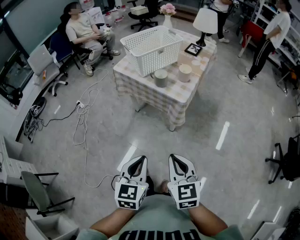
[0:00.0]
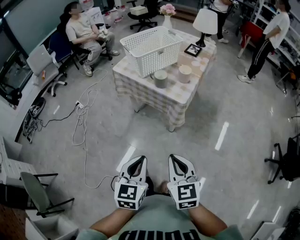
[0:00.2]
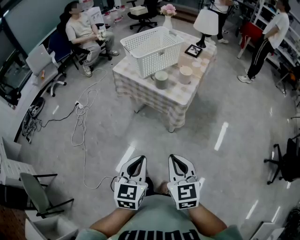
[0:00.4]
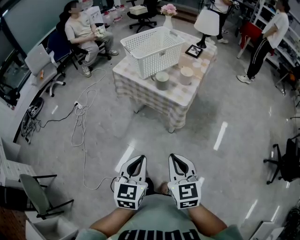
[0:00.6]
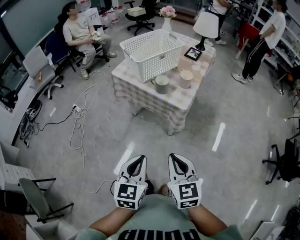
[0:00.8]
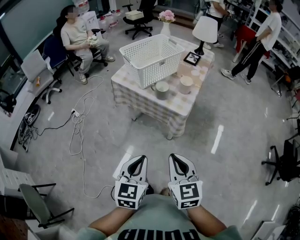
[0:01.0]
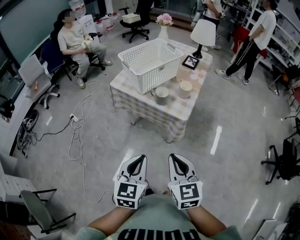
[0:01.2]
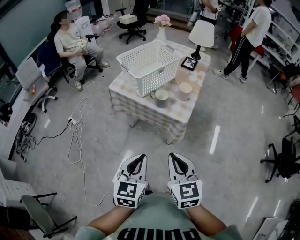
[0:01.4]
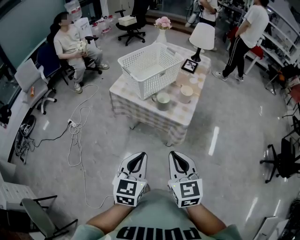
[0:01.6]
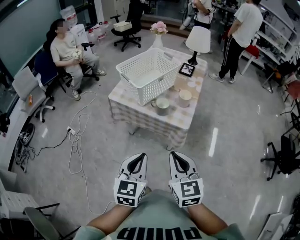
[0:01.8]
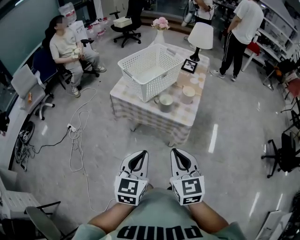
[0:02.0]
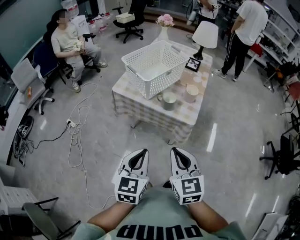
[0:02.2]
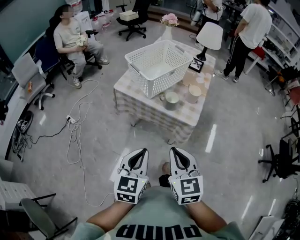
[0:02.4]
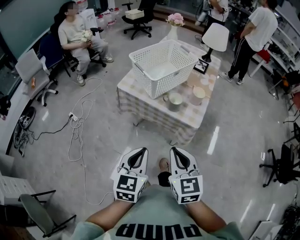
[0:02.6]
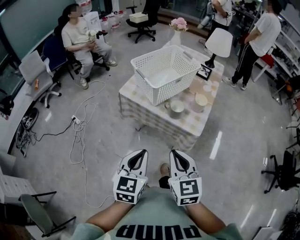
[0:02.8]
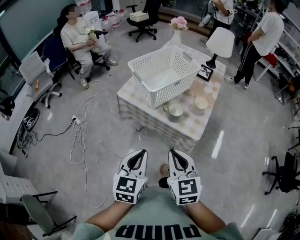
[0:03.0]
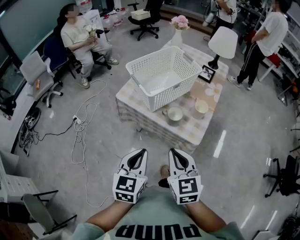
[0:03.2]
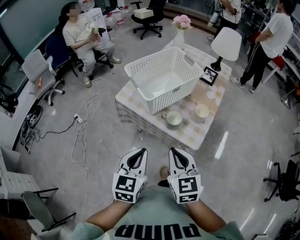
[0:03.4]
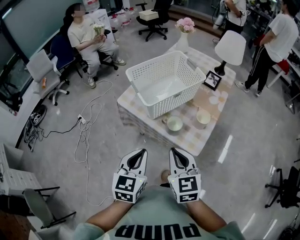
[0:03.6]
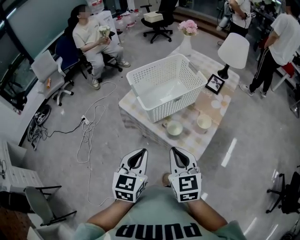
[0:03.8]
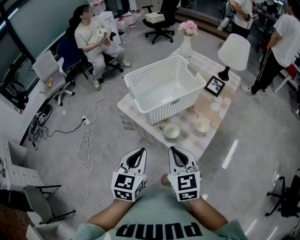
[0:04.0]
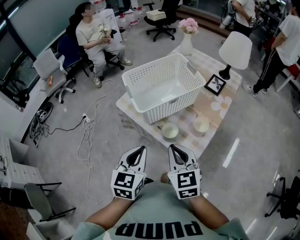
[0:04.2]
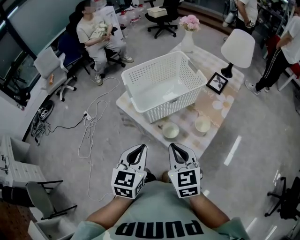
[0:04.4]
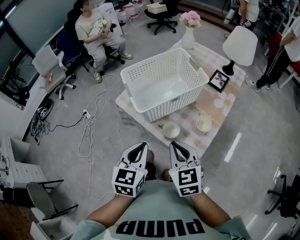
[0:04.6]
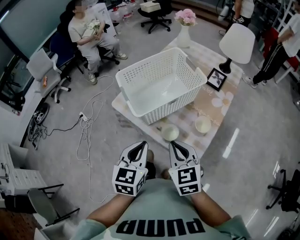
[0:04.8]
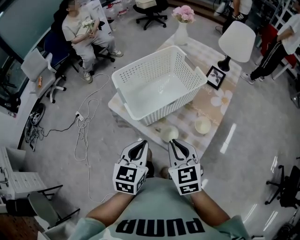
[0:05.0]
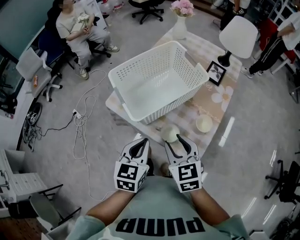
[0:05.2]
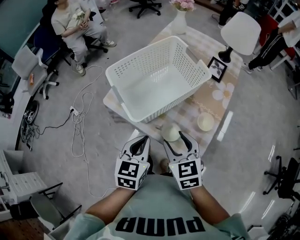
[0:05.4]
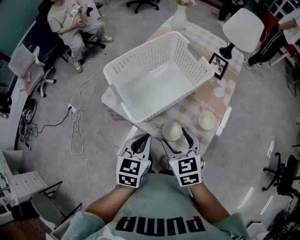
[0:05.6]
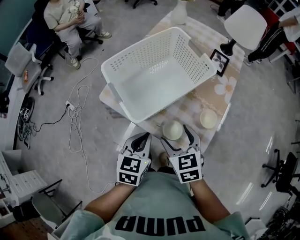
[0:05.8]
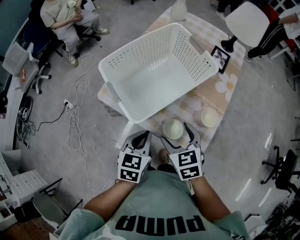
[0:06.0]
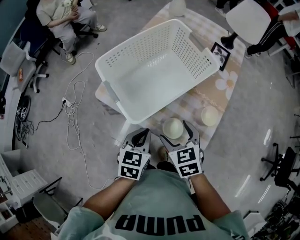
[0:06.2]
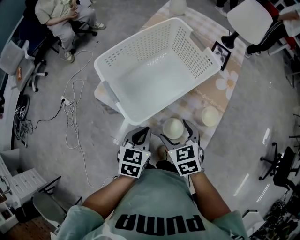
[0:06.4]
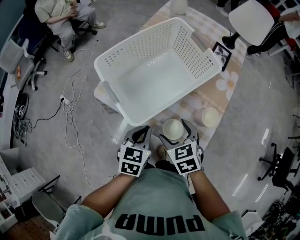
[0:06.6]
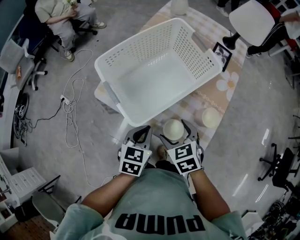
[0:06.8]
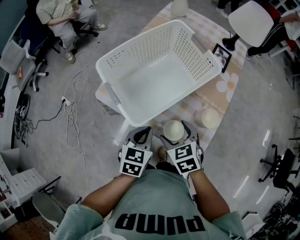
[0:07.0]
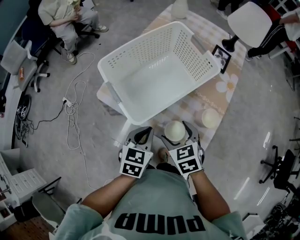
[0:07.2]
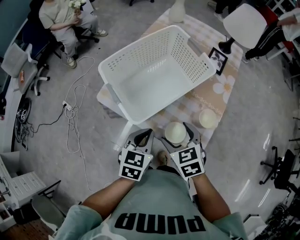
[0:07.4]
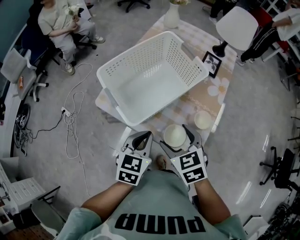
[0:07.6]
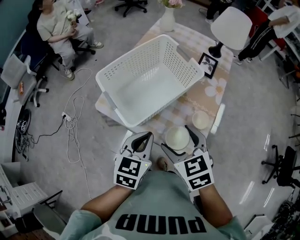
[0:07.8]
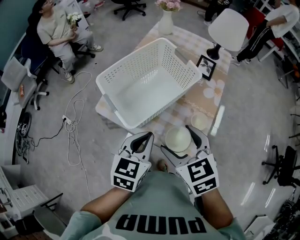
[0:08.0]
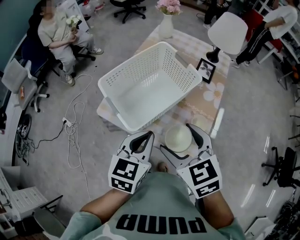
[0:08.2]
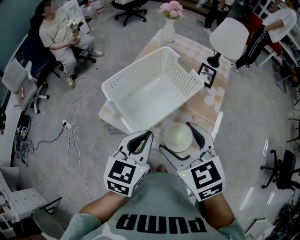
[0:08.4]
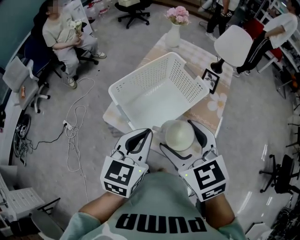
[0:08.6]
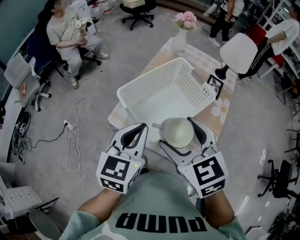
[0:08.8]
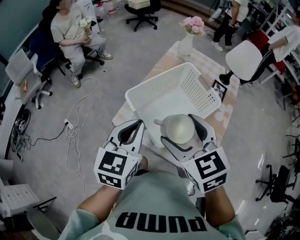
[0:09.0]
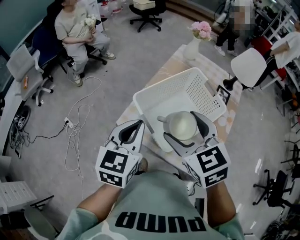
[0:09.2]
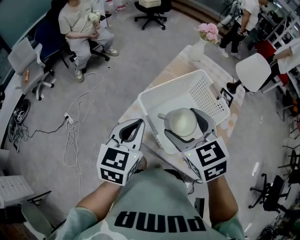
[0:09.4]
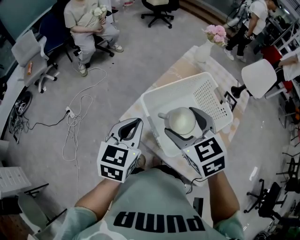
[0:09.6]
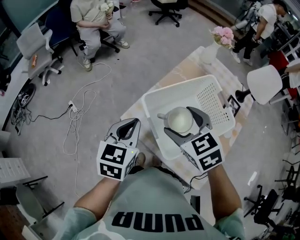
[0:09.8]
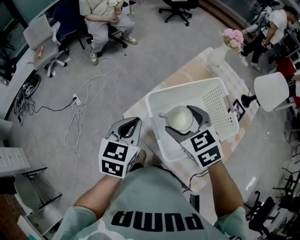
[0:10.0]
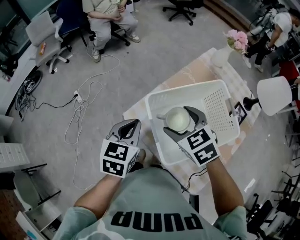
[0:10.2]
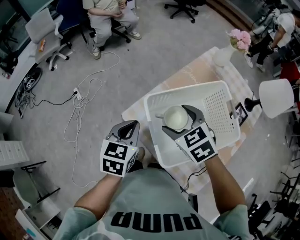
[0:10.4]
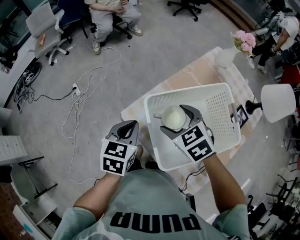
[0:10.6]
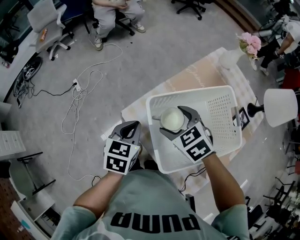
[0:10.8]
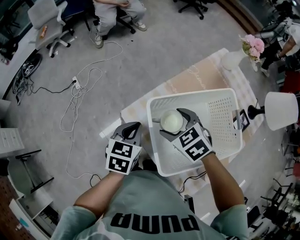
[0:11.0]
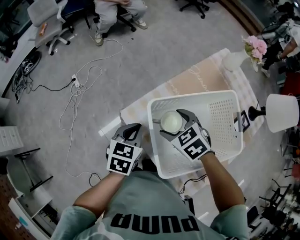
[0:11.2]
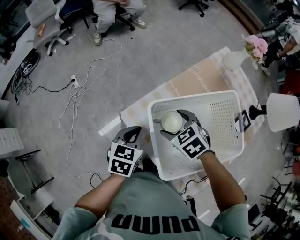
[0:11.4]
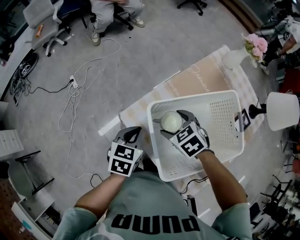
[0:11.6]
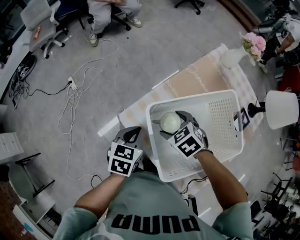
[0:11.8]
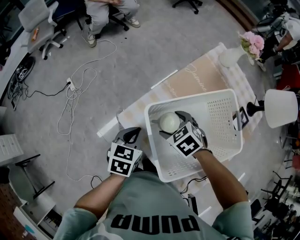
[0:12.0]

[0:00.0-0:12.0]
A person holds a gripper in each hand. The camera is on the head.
0:00.0 to 0:01.6: Both grippers move forward and to the left, approximately 15 cm.
0:01.6 to 0:03.0: The grippers both shift forward by some 10 cm.
0:03.0 to 0:04.4: Both grippers travel together forward and to the right, roughly 15 cm.
0:04.4 to 0:06.0: Both grippers move downward and forward, approximately 15 cm. The right gripper swivels approximately 20 degrees, and opens.
0:06.0 to 0:07.6: The grippers make only small movements.
0:07.6 to 0:09.0: The grippers both shift upward, to the left and forward by approximately 20 cm.
0:09.0 to 0:10.4: The right gripper shifts some 20 cm forward and downward, and swivels approximately 30 degrees. Meanwhile the left gripper moves downward, forward and to the left, approximately 15 cm, and rotates approximately 20 degrees.
0:10.4 to 0:12.0: The two grippers go approximately 10 cm downward.

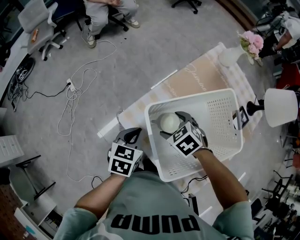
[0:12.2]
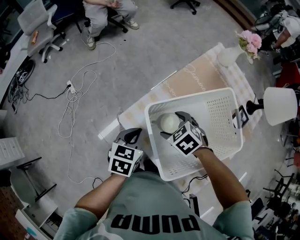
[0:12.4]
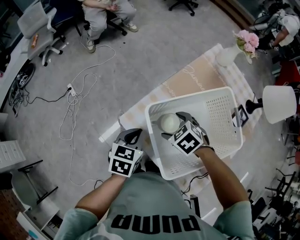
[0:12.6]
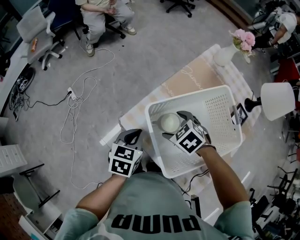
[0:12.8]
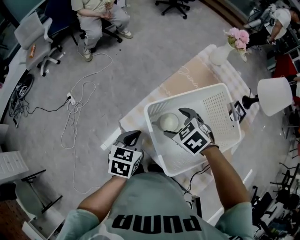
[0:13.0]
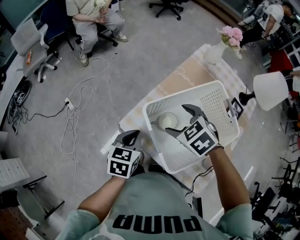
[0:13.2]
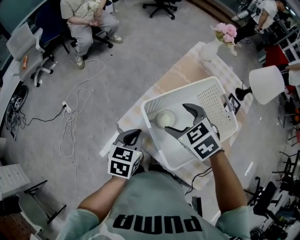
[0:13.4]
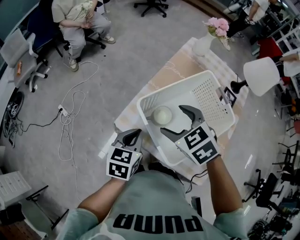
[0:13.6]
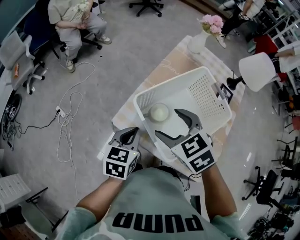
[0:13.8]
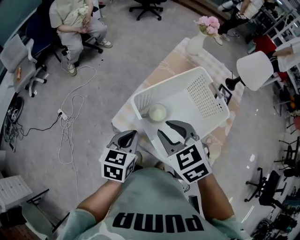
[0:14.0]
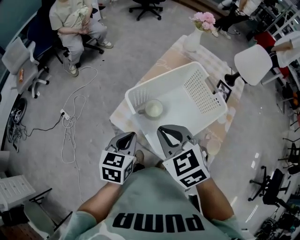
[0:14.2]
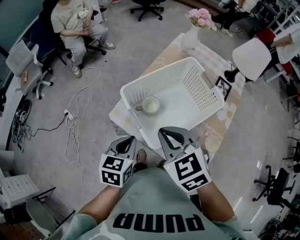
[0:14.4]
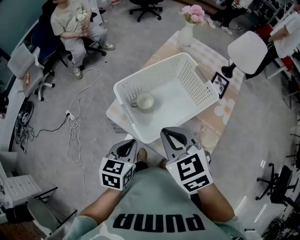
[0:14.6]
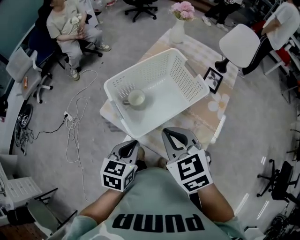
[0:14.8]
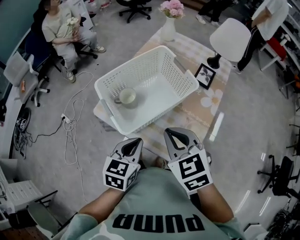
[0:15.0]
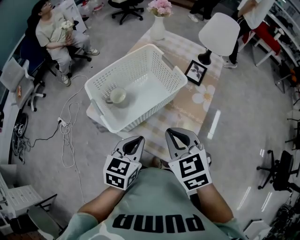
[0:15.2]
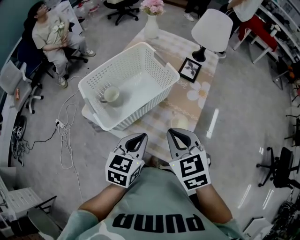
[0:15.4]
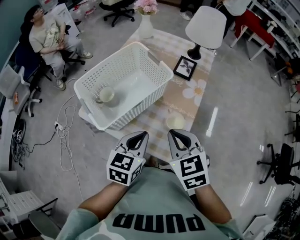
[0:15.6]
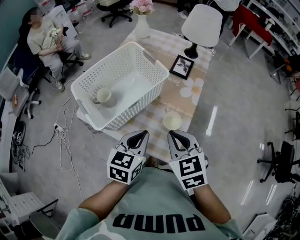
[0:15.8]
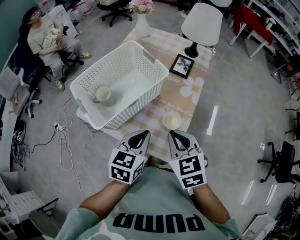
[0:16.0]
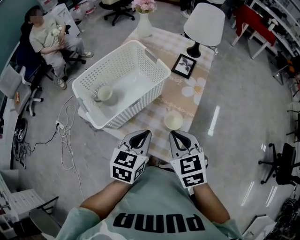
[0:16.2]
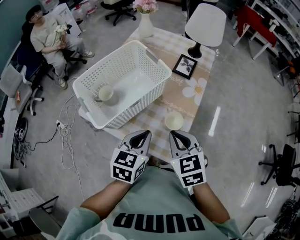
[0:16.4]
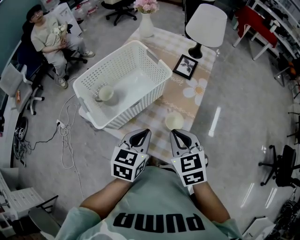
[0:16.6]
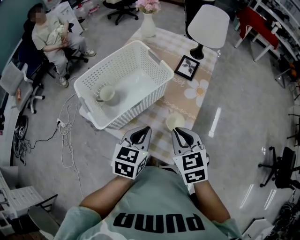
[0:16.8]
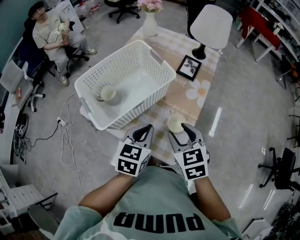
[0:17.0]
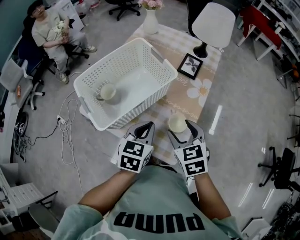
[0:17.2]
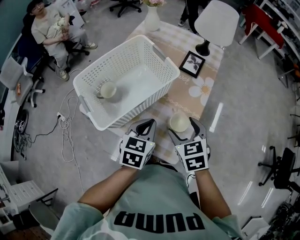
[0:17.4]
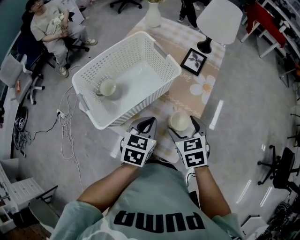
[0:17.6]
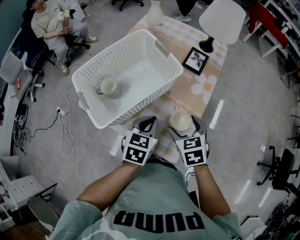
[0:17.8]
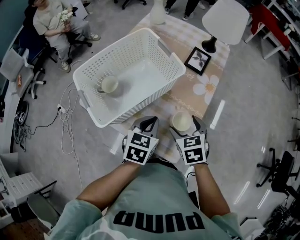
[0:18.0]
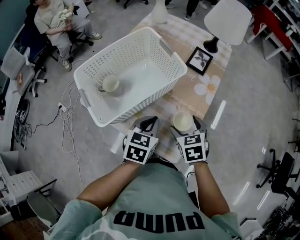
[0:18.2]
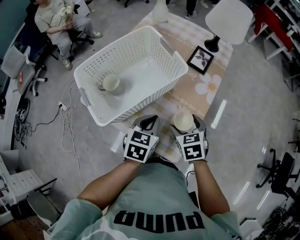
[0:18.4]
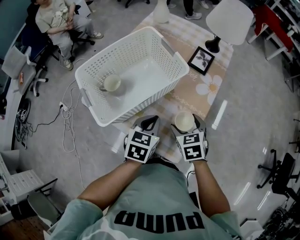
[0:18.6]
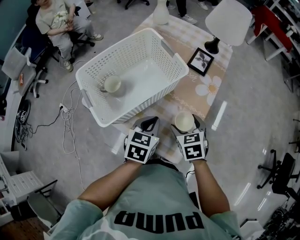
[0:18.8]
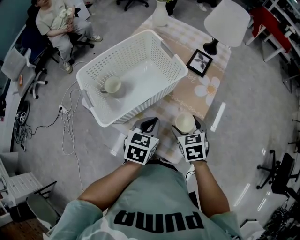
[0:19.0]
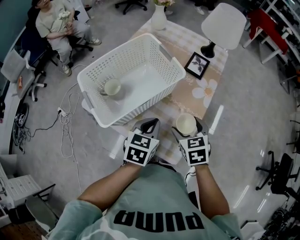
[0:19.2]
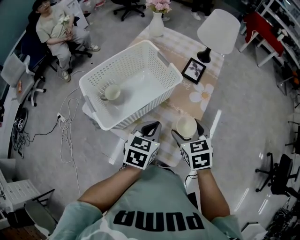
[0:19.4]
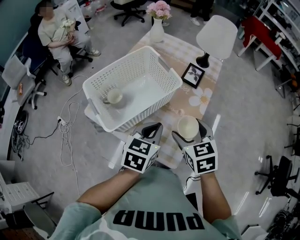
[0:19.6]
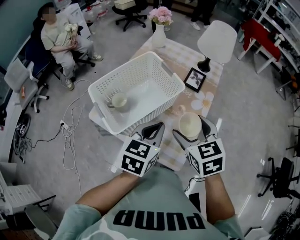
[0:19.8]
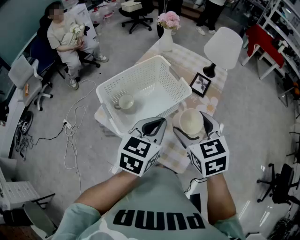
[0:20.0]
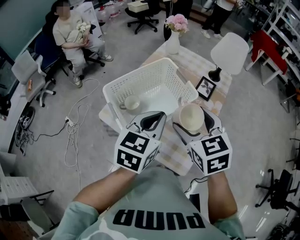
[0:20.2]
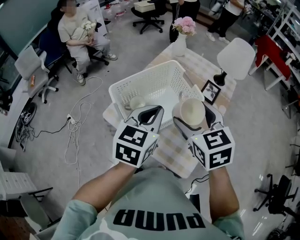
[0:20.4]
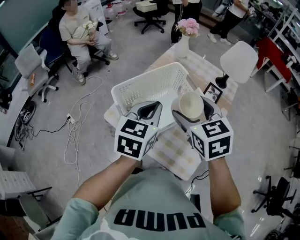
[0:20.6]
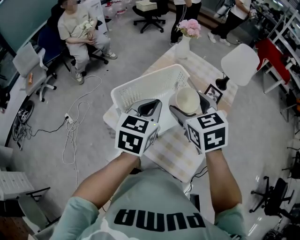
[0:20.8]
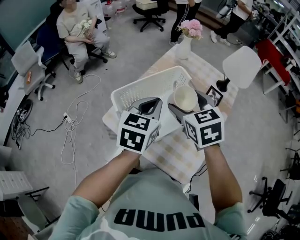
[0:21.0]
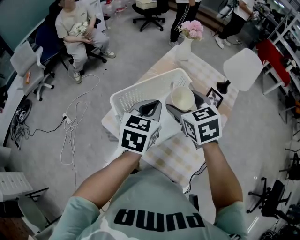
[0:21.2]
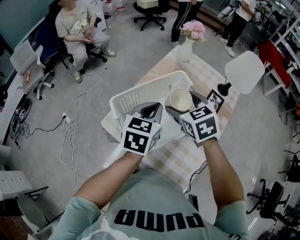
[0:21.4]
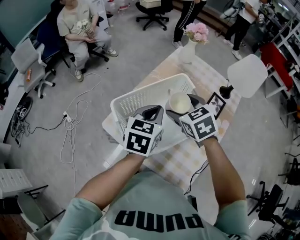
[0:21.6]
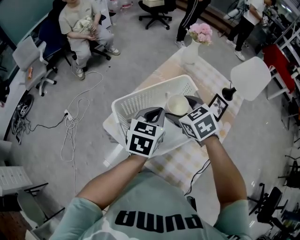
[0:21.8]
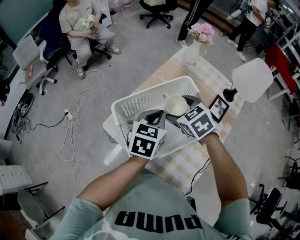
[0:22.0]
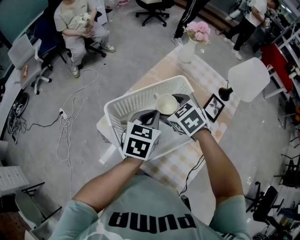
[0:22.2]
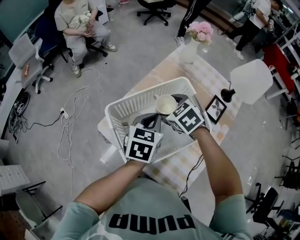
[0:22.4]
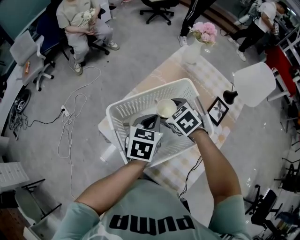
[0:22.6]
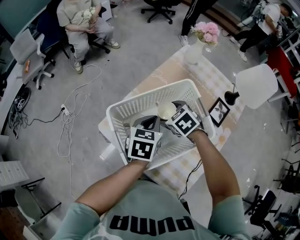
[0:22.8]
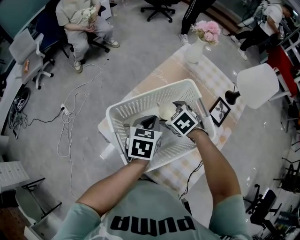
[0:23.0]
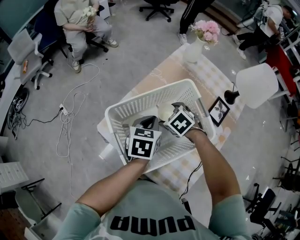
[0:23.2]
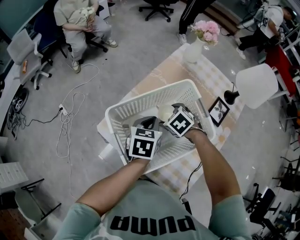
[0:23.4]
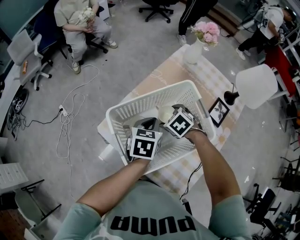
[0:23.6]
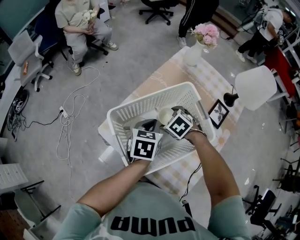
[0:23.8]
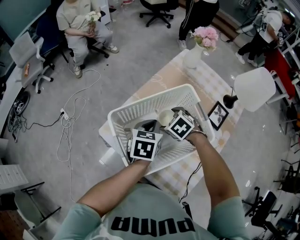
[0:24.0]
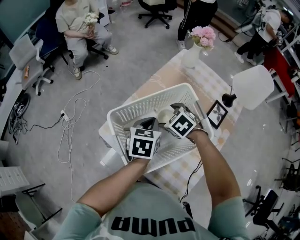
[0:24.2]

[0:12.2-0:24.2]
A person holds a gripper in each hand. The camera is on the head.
0:12.2 to 0:13.8: The right gripper is displaced upward by some 15 cm, and swivels roughly 30 degrees; the left gripper is displaced upward by roughly 5 cm.
0:13.8 to 0:15.2: Both grippers travel together to the right and backward, approximately 25 cm. The right gripper closes up.
0:15.2 to 0:16.6: The left gripper goes about 5 cm to the right. The right gripper goes about 10 cm to the right and downward.
0:16.6 to 0:18.2: The left gripper shifts some 10 cm downward and forward, while the right gripper goes some 15 cm downward and forward, and opens.
0:18.2 to 0:19.8: Both grippers travel together upward, roughly 15 cm.
0:19.8 to 0:21.2: Both grippers move forward and to the left, approximately 20 cm.
0:21.2 to 0:22.6: The right gripper shifts approximately 15 cm downward and forward, and changes its angle by approximately 30 degrees, while the left gripper travels downward by roughly 10 cm.
